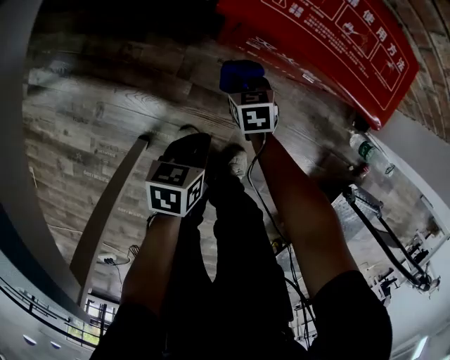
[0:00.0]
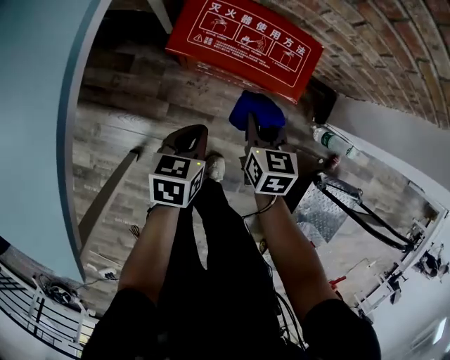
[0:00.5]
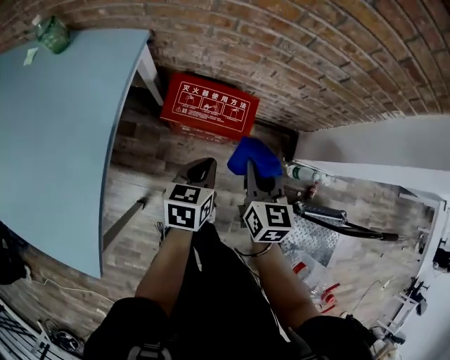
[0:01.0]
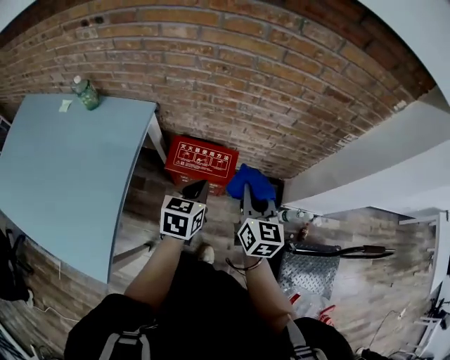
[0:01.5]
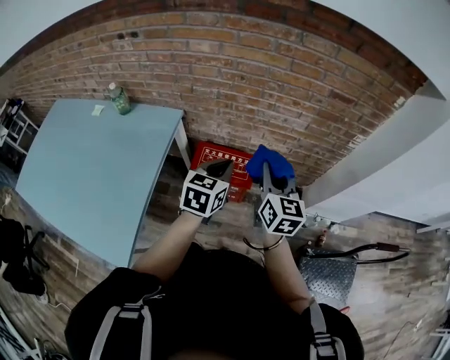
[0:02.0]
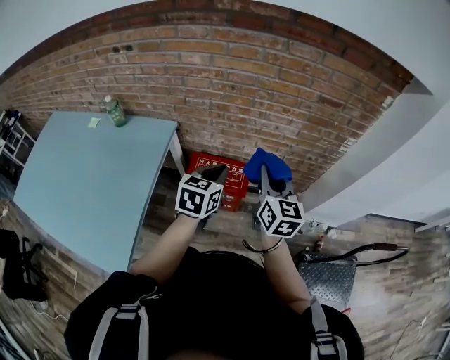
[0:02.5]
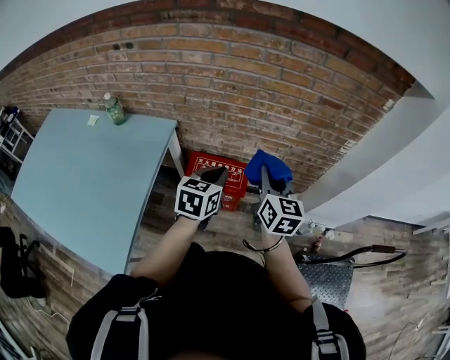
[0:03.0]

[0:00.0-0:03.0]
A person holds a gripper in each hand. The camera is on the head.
0:00.0 to 0:01.5: Both grippers move upward, about 60 cm. The right gripper points its fingers about 40 degrees further upward, while the left gripper rotates roughly 40 degrees.
0:01.5 to 0:03.0: Both grippers travel together upward, approximately 10 cm.

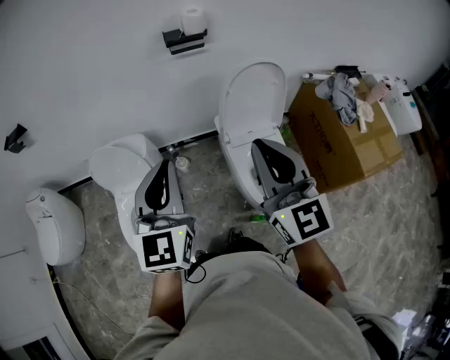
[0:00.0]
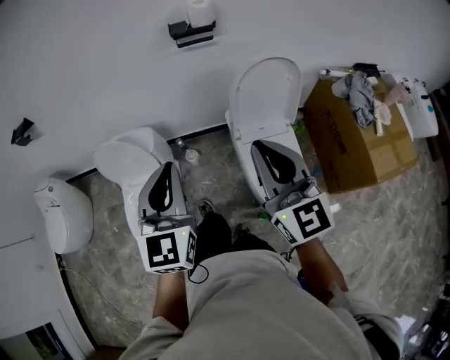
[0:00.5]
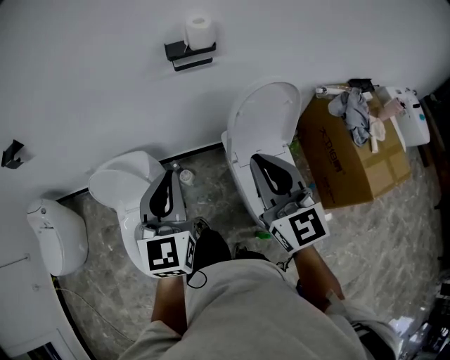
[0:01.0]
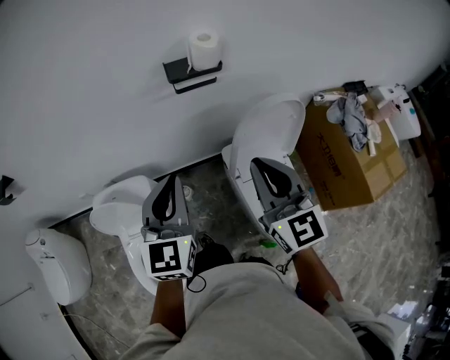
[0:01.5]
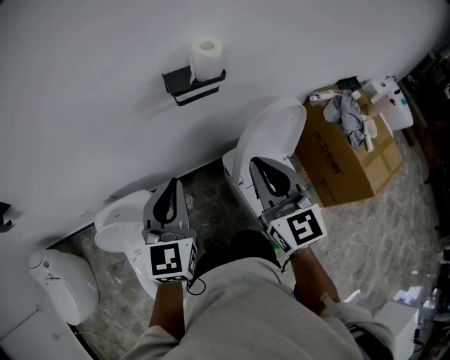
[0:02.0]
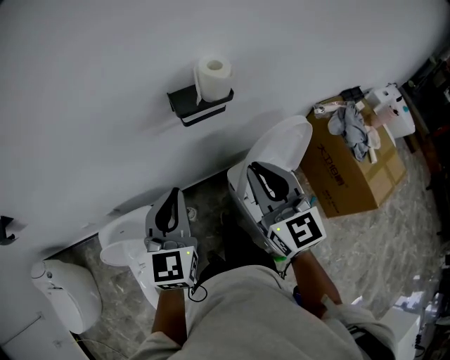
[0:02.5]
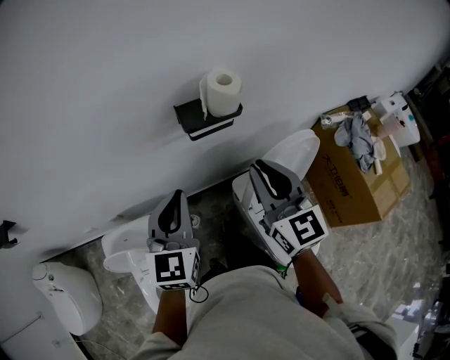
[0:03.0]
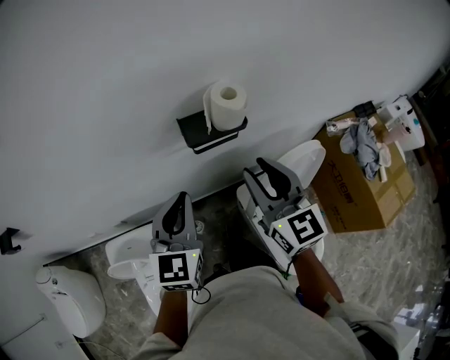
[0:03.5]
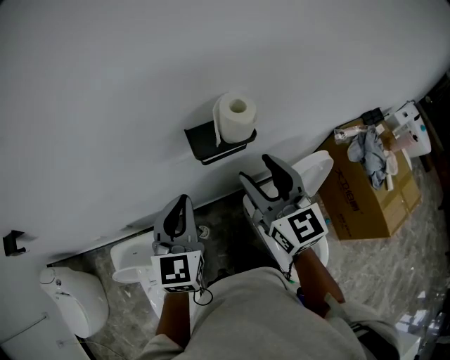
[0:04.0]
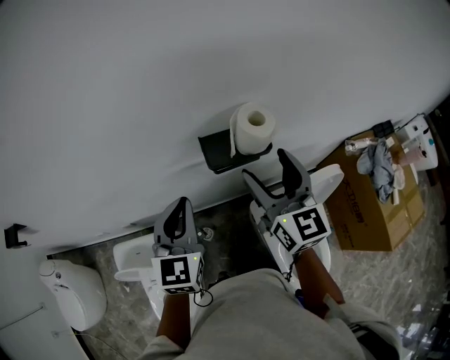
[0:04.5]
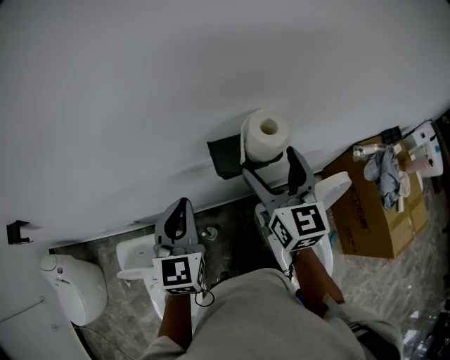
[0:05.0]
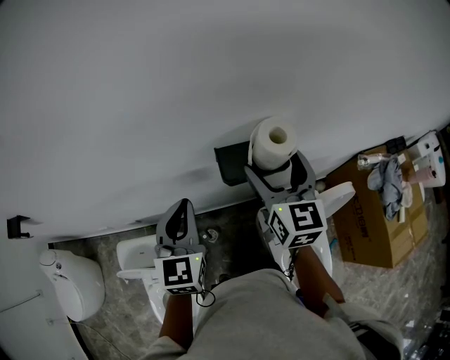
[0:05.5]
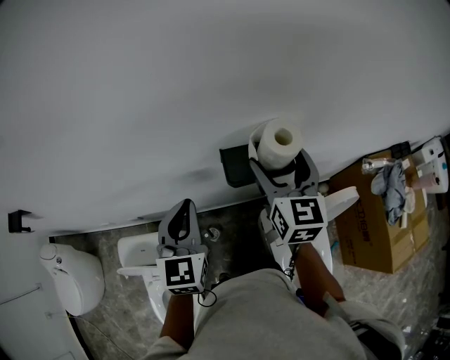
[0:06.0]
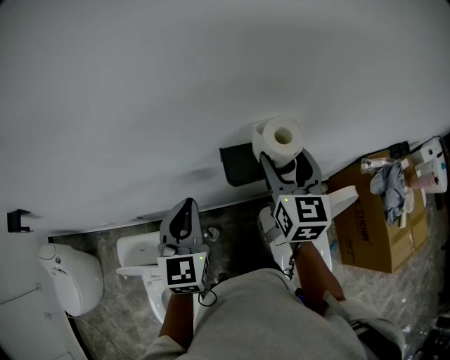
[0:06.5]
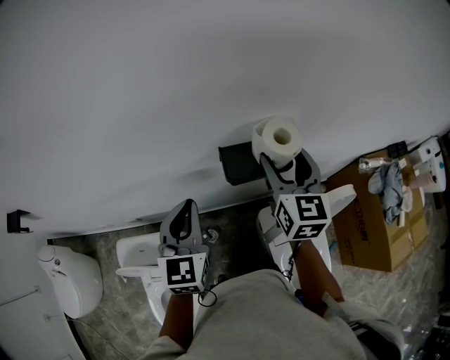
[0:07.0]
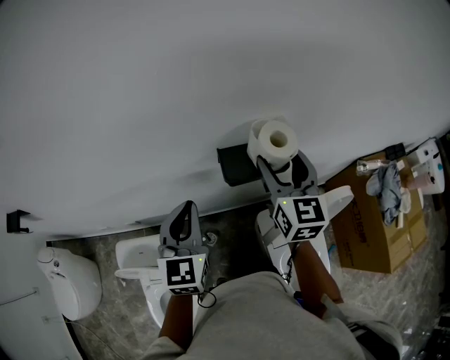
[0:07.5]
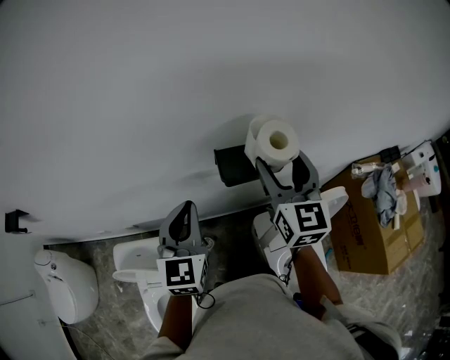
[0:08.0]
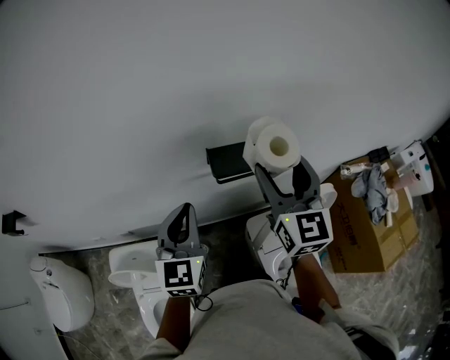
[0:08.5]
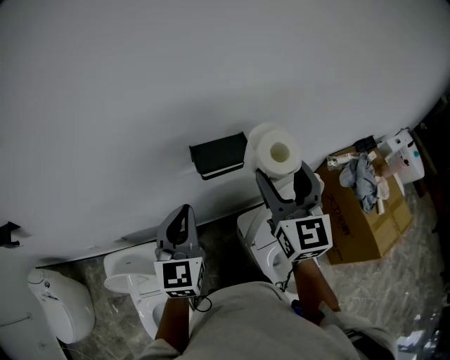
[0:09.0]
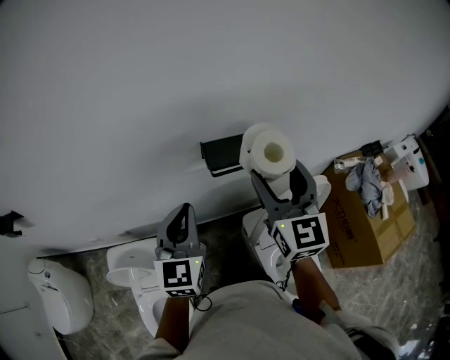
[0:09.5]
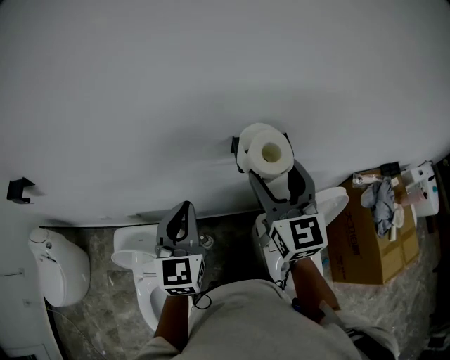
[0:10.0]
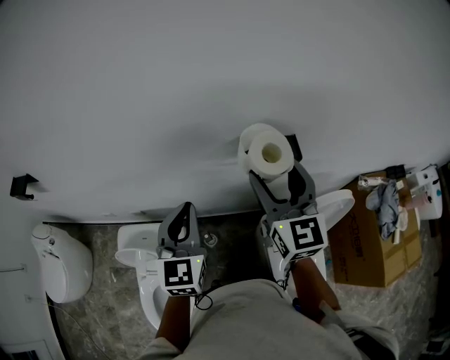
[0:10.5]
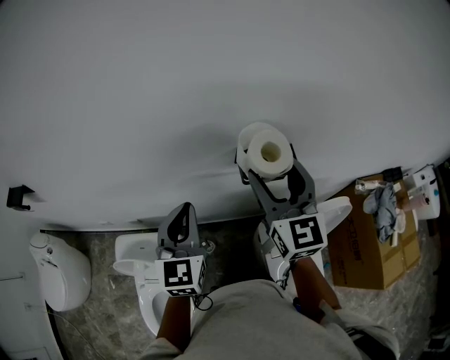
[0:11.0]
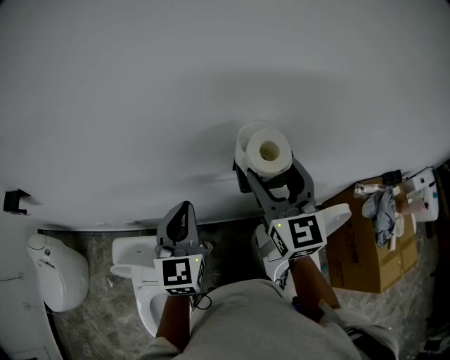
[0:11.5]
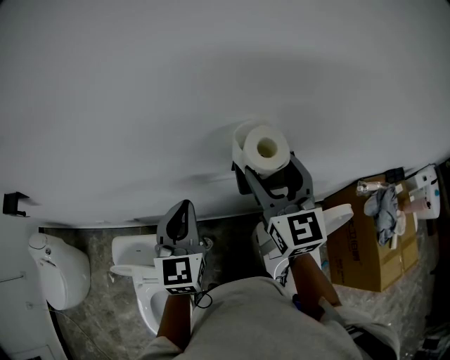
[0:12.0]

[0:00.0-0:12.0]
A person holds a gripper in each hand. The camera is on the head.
0:00.0 to 0:02.0: Both grippers move forward, about 30 cm.
0:02.0 to 0:04.0: Both grippers move forward, about 15 cm. The right gripper opens its fingers.
0:04.0 to 0:06.0: The right gripper travels forward by roughly 15 cm, and opens. The left gripper heads forward, covering approximately 5 cm.
0:06.0 to 0:08.0: The right gripper changes place by approximately 5 cm.
0:08.0 to 0:10.0: The left gripper moves backward, some 5 cm. The right gripper shifts about 10 cm backward and to the left.
0:10.0 to 0:12.0: The two grippers go some 10 cm forward.

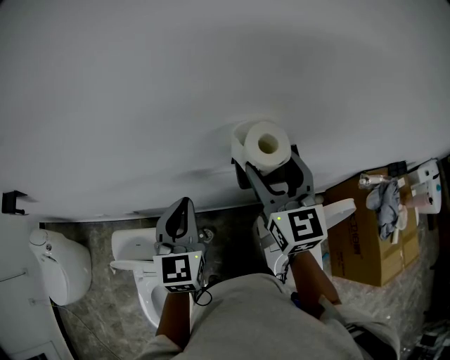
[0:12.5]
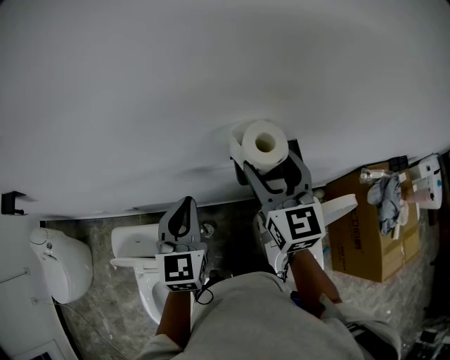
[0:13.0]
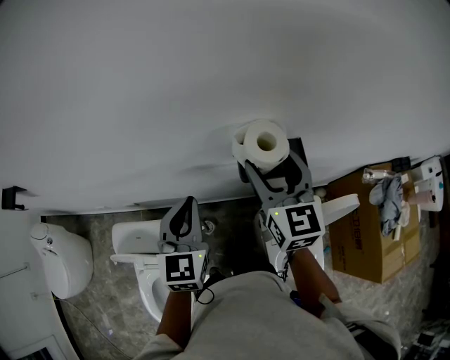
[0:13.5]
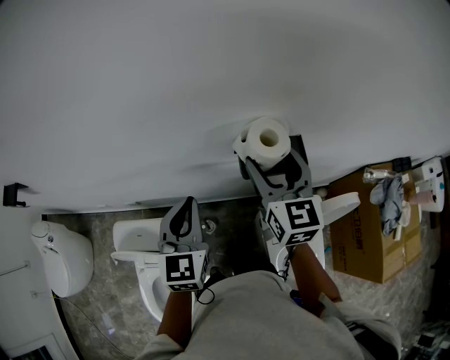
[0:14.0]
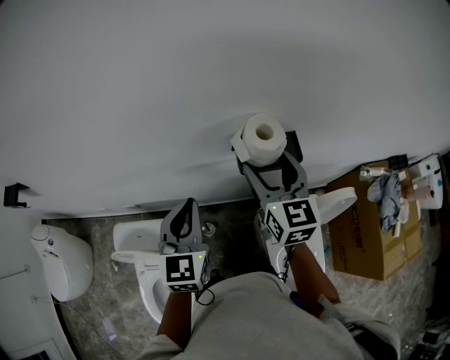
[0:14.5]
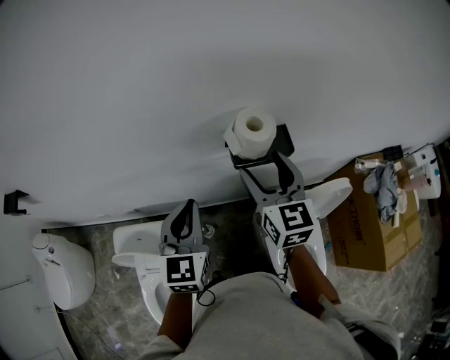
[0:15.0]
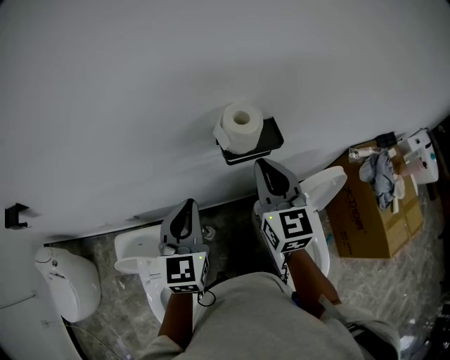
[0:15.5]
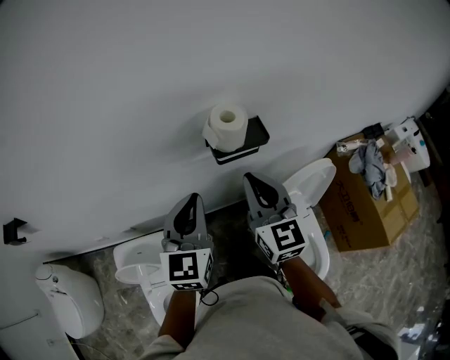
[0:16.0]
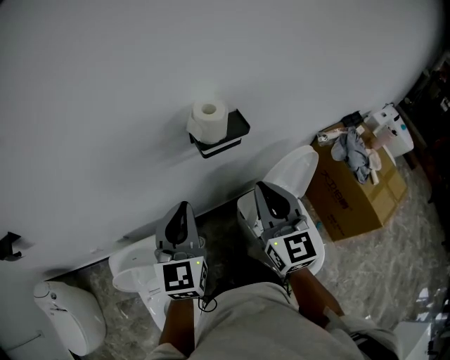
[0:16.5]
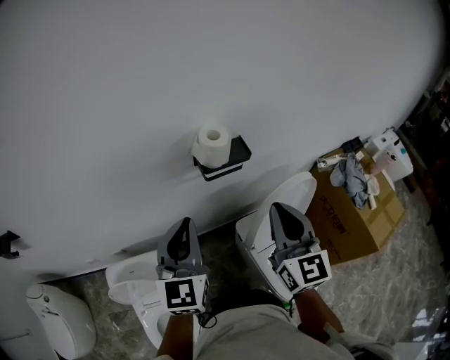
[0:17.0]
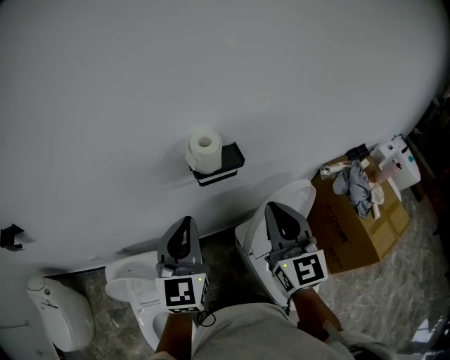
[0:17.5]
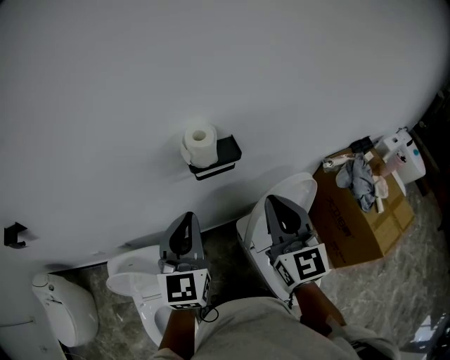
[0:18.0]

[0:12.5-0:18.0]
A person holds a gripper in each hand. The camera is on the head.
0:12.5 to 0:14.5: The right gripper moves about 5 cm.
0:14.5 to 0:16.0: The right gripper shifts approximately 10 cm backward, and closes its fingers; the left gripper changes place by approximately 10 cm.
0:16.0 to 0:18.0: The right gripper shifts roughly 15 cm to the right, backward and upward. Meanwhile the left gripper shifts about 10 cm to the right and backward.

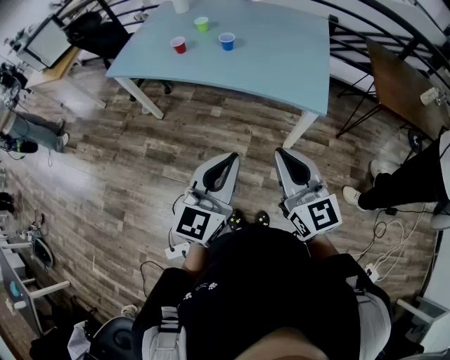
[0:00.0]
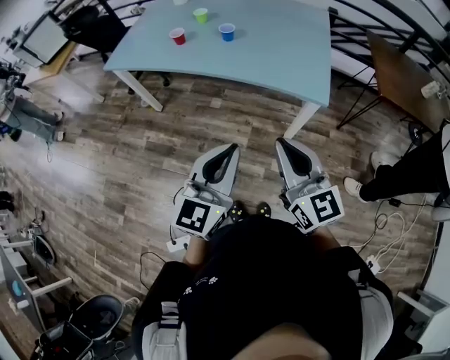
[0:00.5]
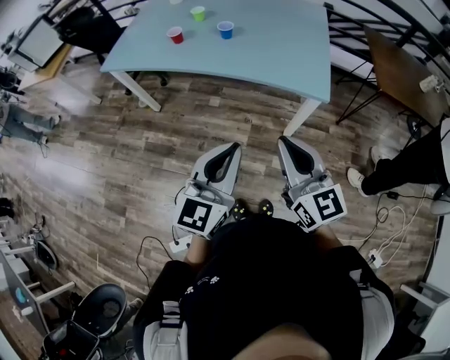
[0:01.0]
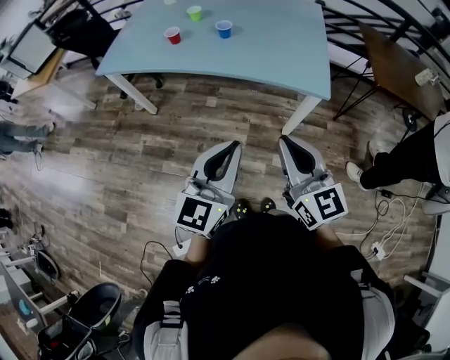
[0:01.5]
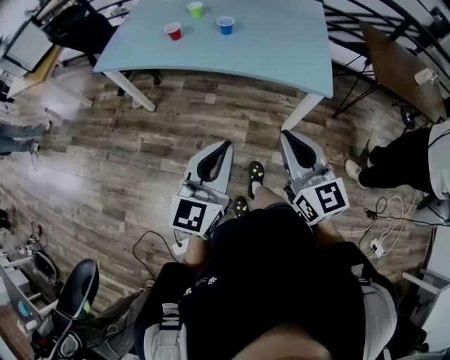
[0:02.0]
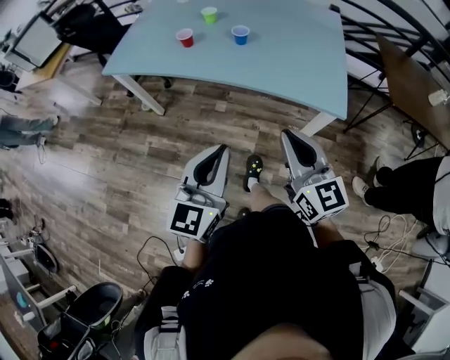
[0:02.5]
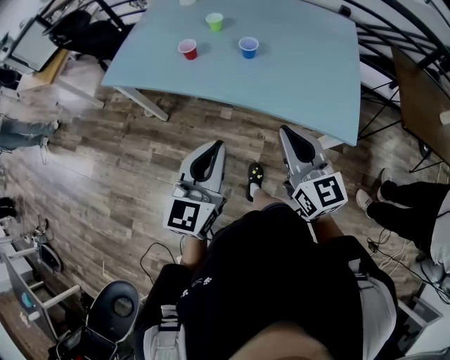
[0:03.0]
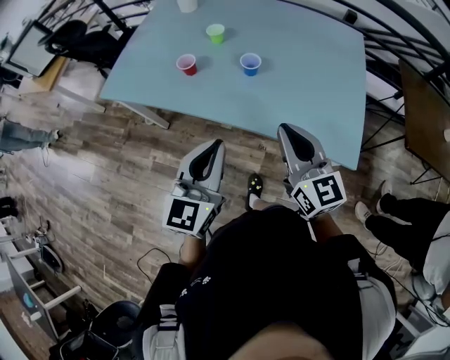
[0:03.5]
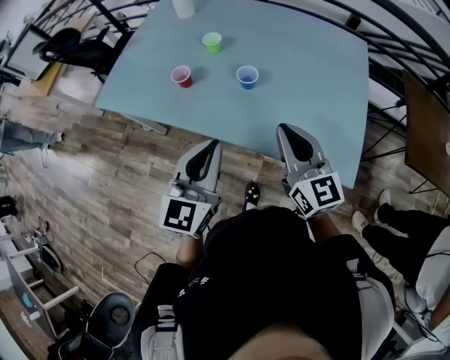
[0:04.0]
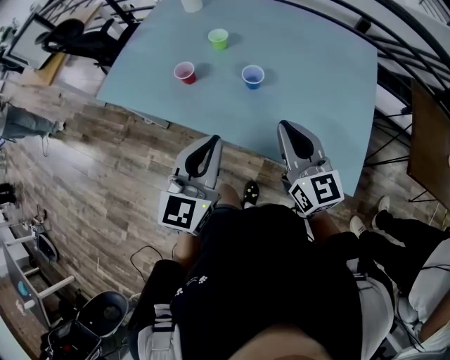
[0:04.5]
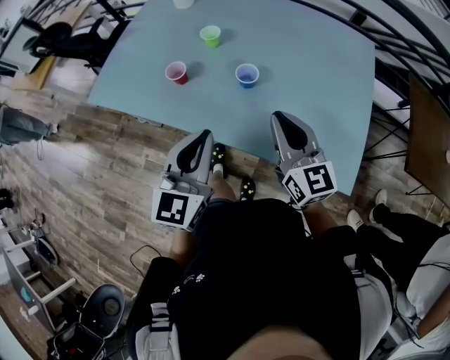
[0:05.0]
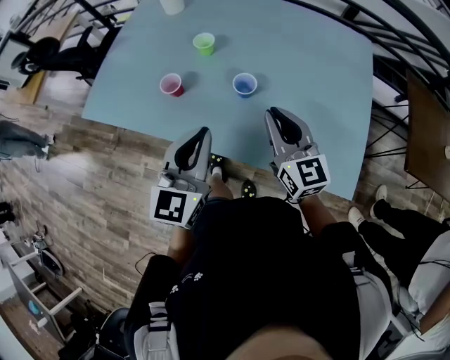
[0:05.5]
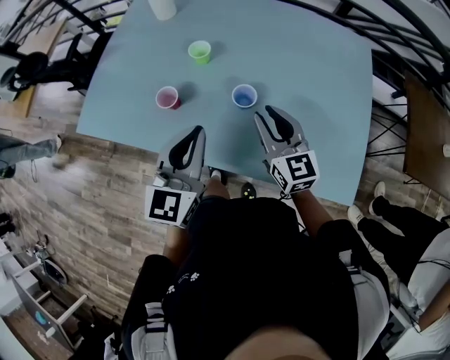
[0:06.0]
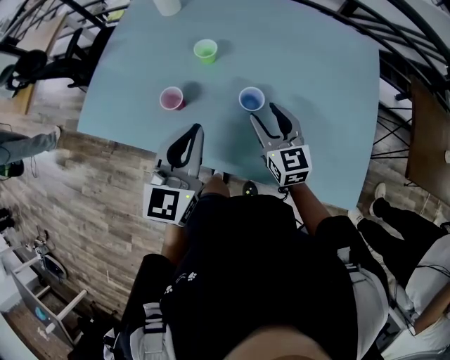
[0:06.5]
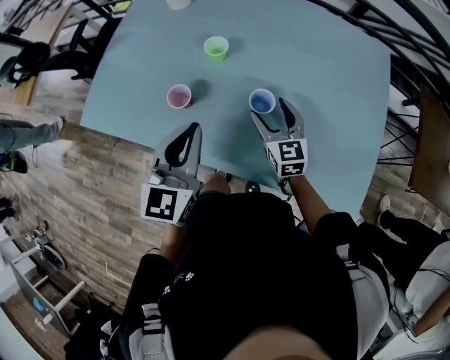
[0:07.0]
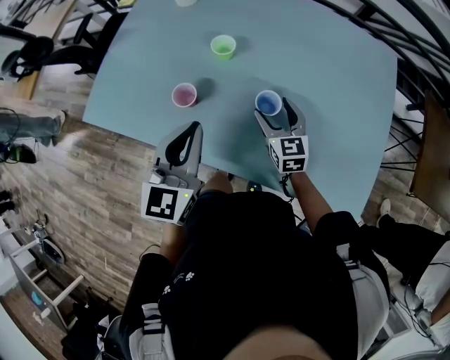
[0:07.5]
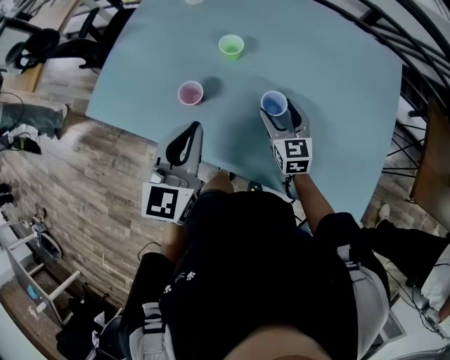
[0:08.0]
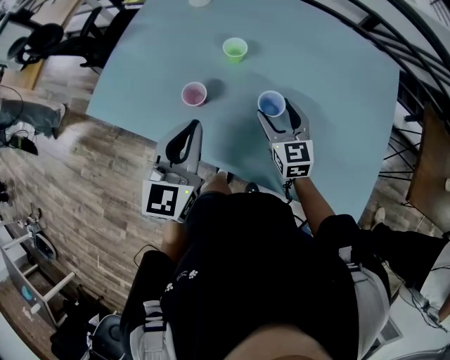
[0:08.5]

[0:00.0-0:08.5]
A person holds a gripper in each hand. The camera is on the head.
0:00.0 to 0:02.0: The two grippers go approximately 5 cm to the left.
0:02.0 to 0:04.0: Both grippers travel together forward, approximately 35 cm.
0:04.0 to 0:06.5: The left gripper is displaced forward by approximately 20 cm. The right gripper goes approximately 25 cm forward and downward, and opens its fingers.
0:06.5 to 0:08.5: The right gripper ends up some 5 cm from where it was; the left gripper heads to the left, covering some 5 cm.
